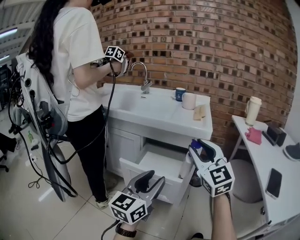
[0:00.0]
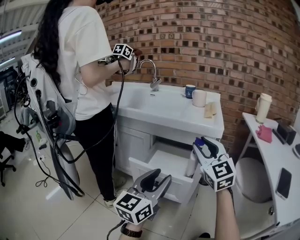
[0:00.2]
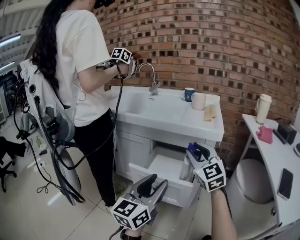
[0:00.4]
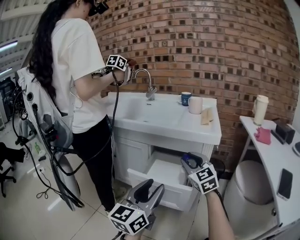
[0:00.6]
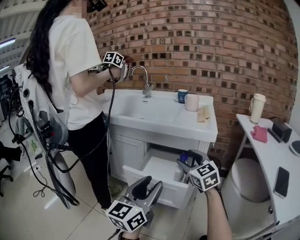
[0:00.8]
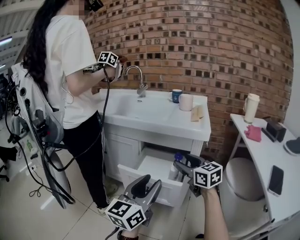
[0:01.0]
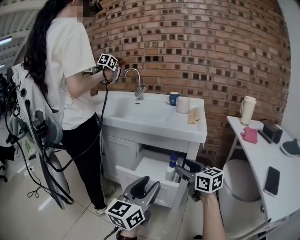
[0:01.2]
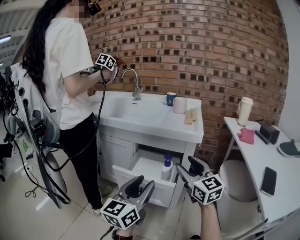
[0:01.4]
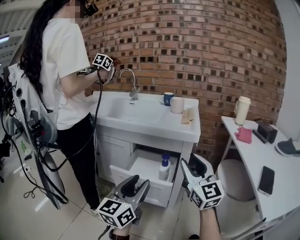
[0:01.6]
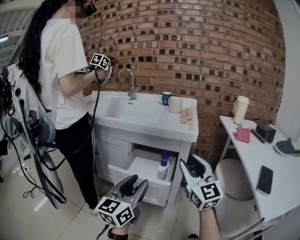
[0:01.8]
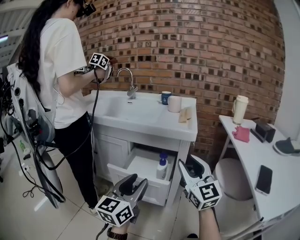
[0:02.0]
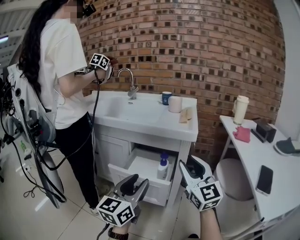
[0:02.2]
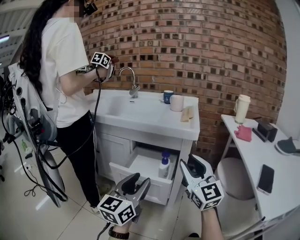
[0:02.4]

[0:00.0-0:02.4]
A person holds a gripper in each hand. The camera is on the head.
0.0 to 1.2 s: The right gripper moves downward, roughly 10 cm, changes its angle by some 40 degrees, and opens.
1.2 to 2.4 s: The right gripper shifts some 10 cm upward and backward, rotates some 40 degrees, and closes.

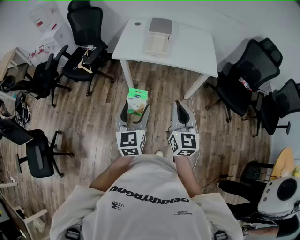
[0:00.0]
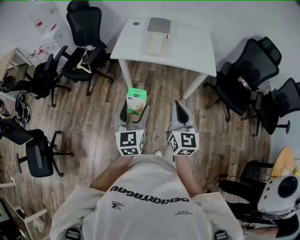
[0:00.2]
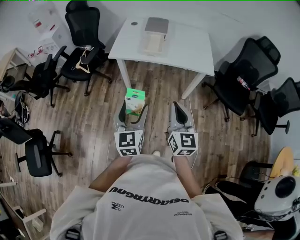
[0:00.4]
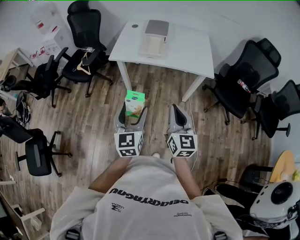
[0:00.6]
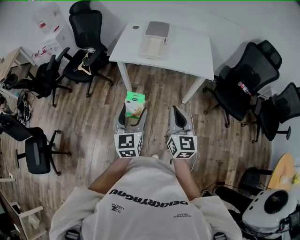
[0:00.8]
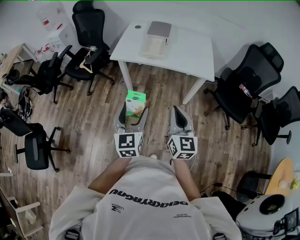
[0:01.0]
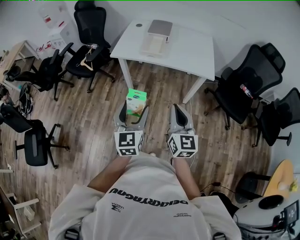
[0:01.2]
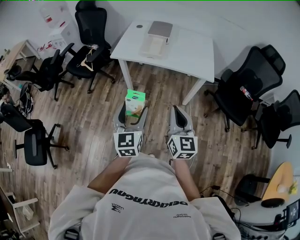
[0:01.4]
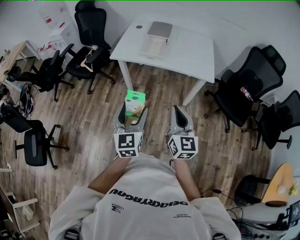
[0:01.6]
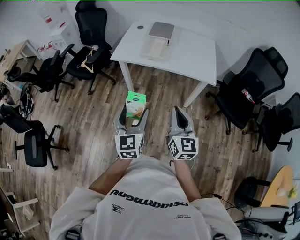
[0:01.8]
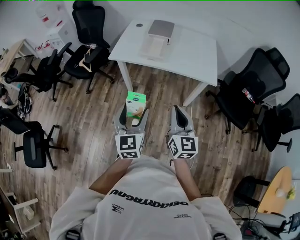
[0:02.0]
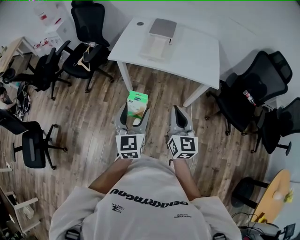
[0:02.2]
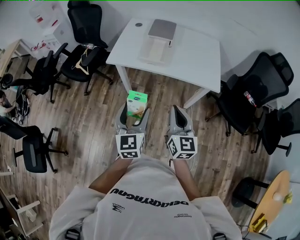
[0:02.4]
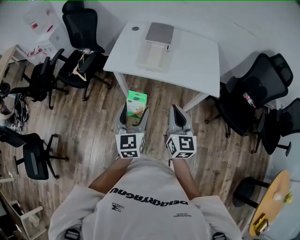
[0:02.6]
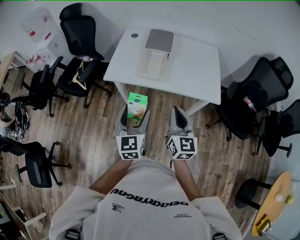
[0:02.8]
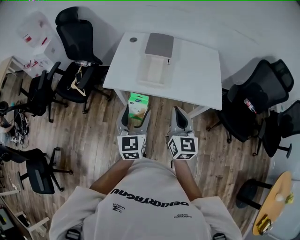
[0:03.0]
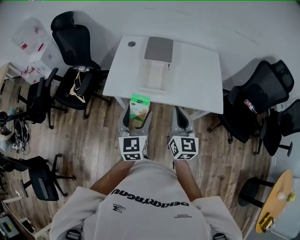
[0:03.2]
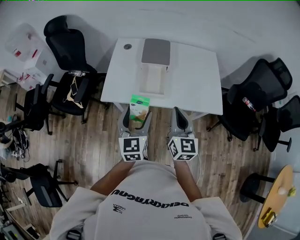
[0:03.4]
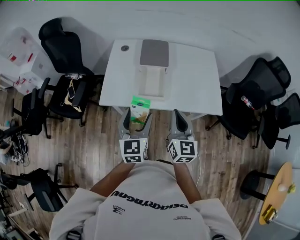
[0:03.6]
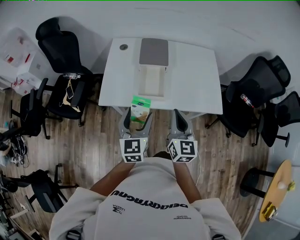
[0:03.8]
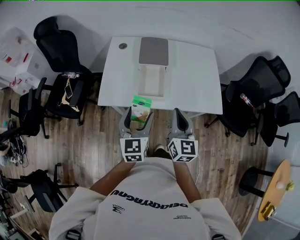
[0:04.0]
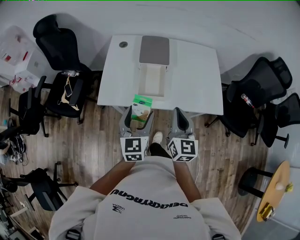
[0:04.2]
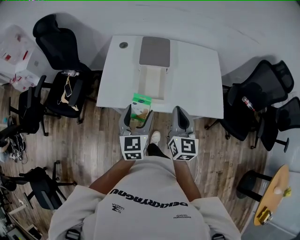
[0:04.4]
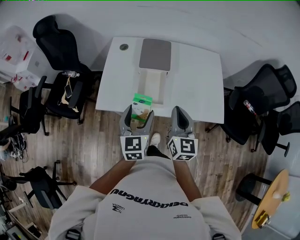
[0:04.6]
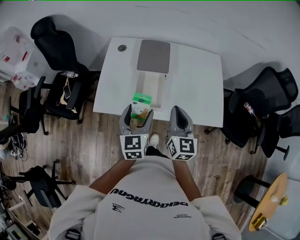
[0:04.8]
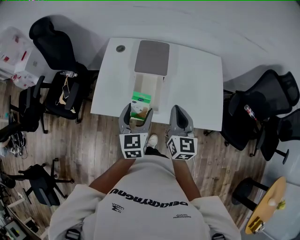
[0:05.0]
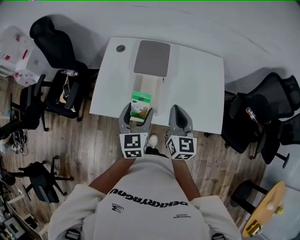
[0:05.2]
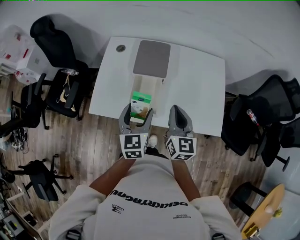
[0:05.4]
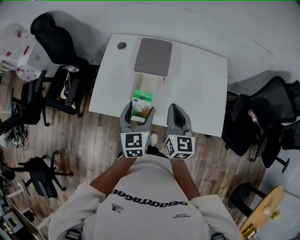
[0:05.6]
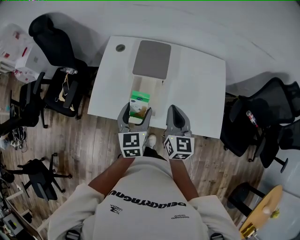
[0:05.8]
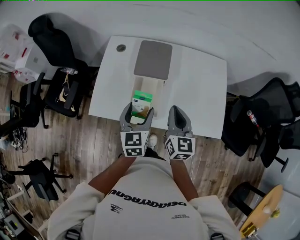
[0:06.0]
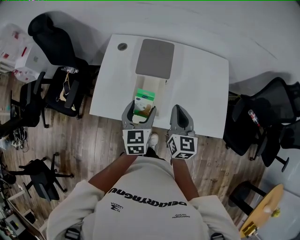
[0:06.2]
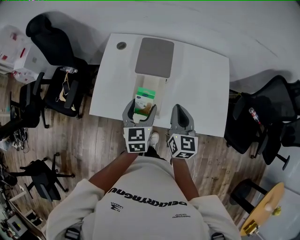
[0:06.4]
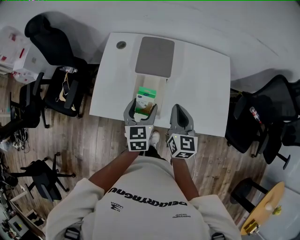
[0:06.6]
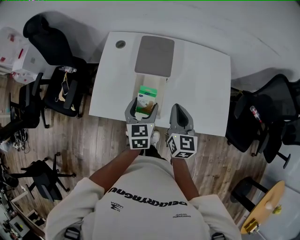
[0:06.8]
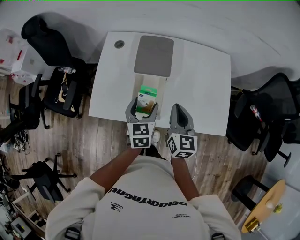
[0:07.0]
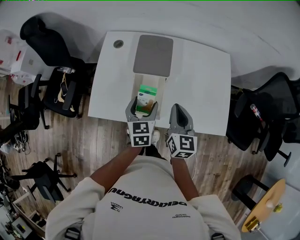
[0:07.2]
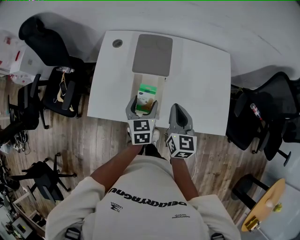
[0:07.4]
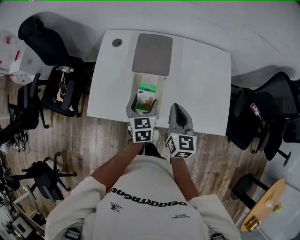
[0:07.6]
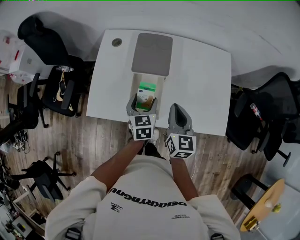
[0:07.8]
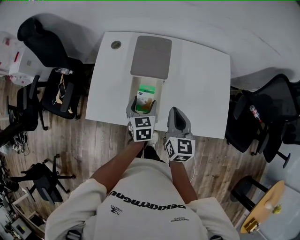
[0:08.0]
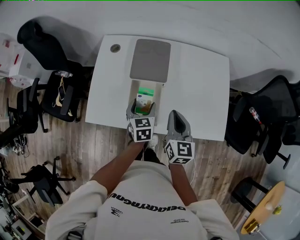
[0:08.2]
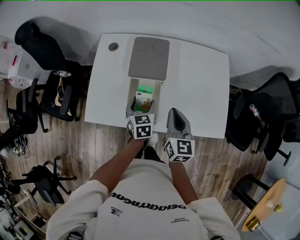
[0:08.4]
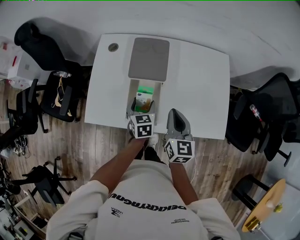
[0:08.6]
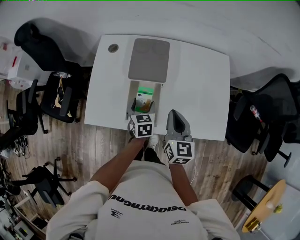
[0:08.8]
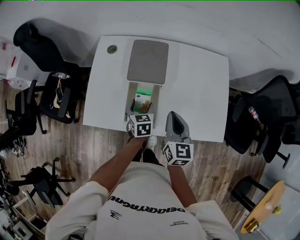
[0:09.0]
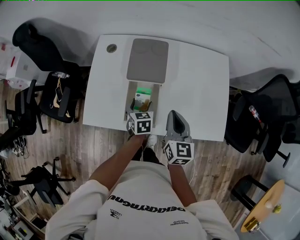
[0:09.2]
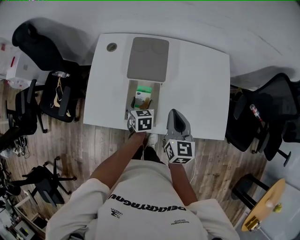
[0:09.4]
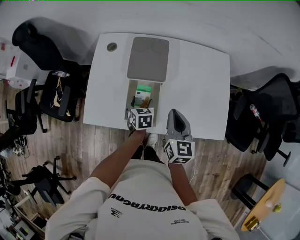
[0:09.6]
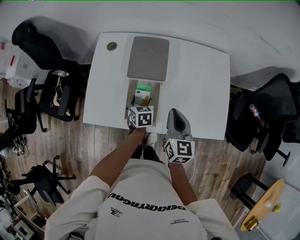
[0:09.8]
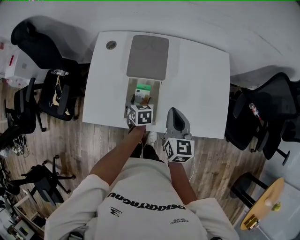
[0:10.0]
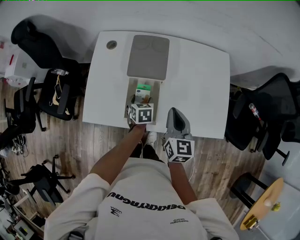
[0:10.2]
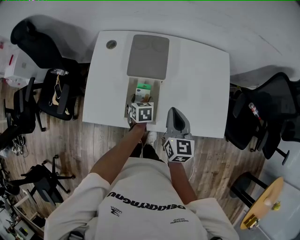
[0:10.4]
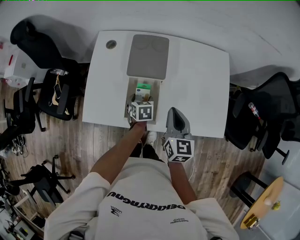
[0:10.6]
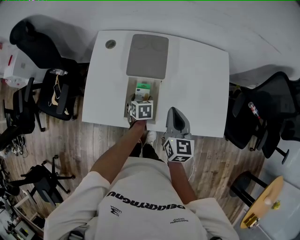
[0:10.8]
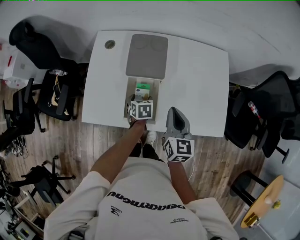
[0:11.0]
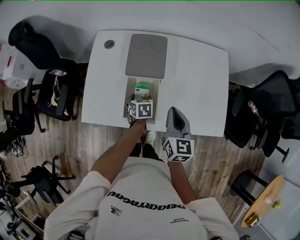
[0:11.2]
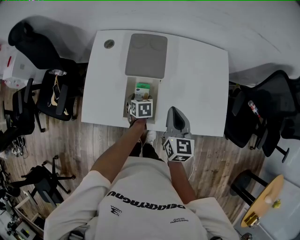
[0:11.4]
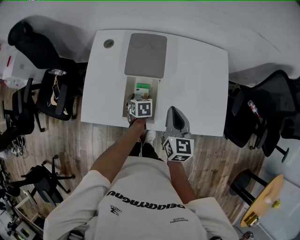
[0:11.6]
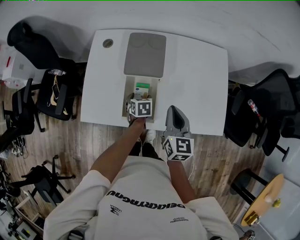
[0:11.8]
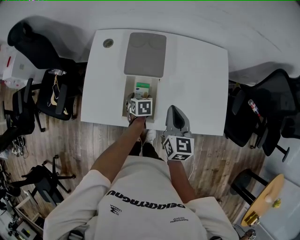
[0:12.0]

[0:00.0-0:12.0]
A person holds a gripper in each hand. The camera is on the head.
0.0 to 1.6 s: The grippers both shift to the right by approximately 10 cm.
1.6 to 3.0 s: The two grippers go roughly 30 cm forward.
3.0 to 4.4 s: The grippers both shift forward by some 15 cm.
4.4 to 6.0 s: The left gripper shifts some 15 cm forward and to the right, while the right gripper travels forward by about 15 cm.
6.0 to 7.6 s: The left gripper is displaced downward and forward by some 10 cm.
7.6 to 9.0 s: The left gripper moves downward, some 10 cm.
9.0 to 10.4 s: The left gripper shifts by roughly 5 cm.
10.4 to 12.0 s: There are only small adjustments of the grippers.

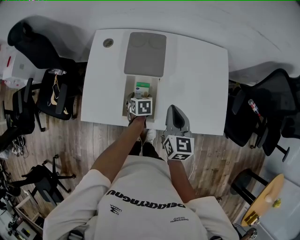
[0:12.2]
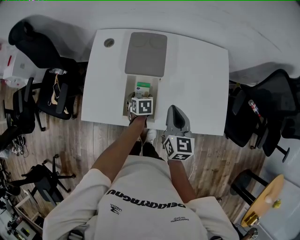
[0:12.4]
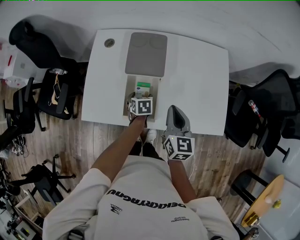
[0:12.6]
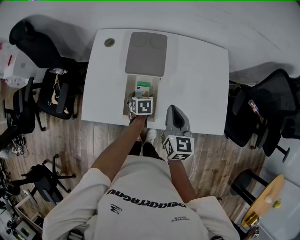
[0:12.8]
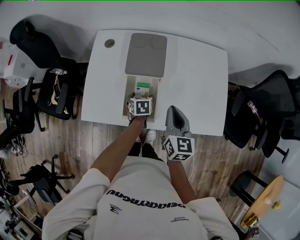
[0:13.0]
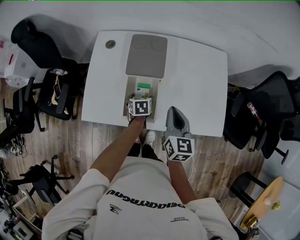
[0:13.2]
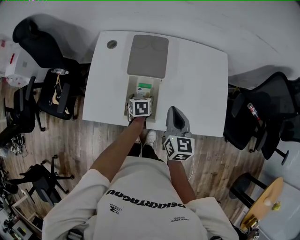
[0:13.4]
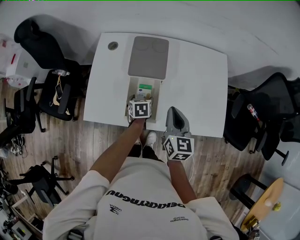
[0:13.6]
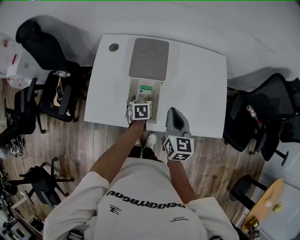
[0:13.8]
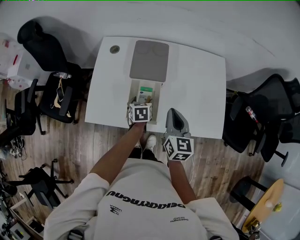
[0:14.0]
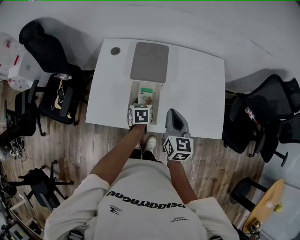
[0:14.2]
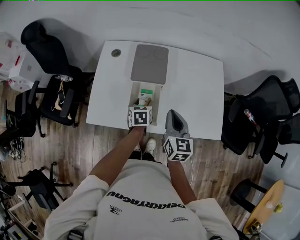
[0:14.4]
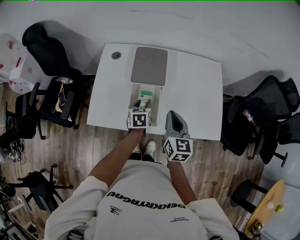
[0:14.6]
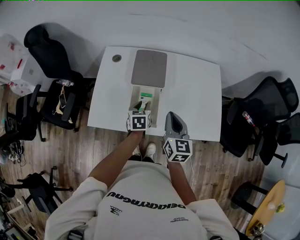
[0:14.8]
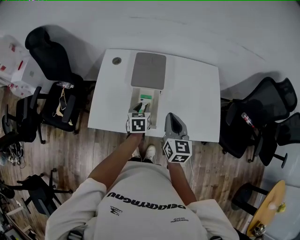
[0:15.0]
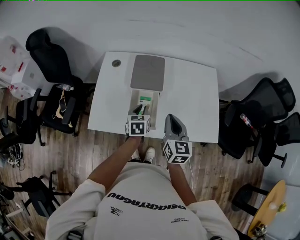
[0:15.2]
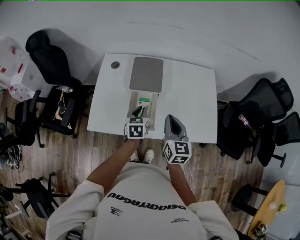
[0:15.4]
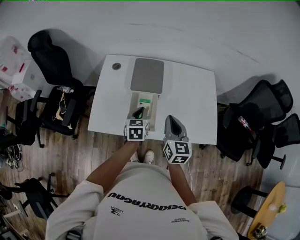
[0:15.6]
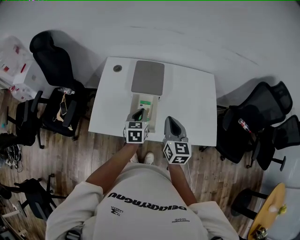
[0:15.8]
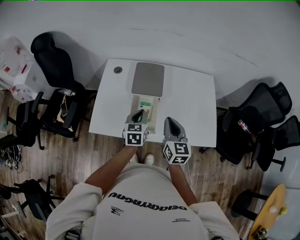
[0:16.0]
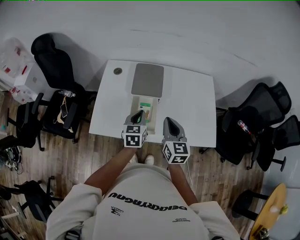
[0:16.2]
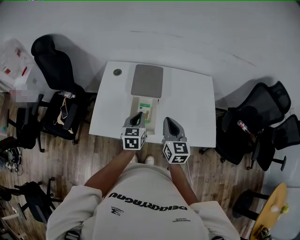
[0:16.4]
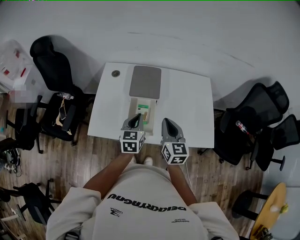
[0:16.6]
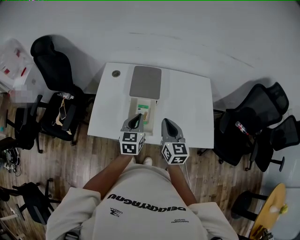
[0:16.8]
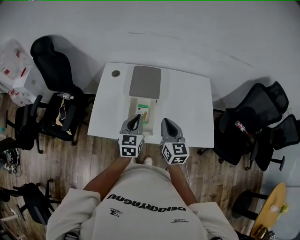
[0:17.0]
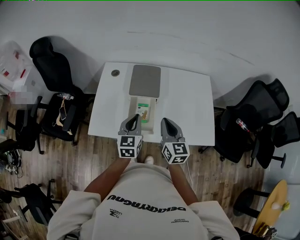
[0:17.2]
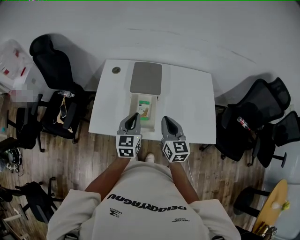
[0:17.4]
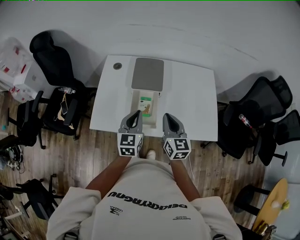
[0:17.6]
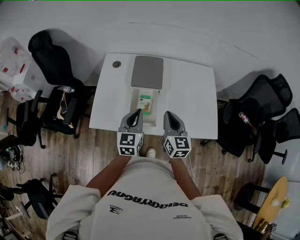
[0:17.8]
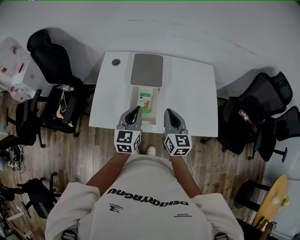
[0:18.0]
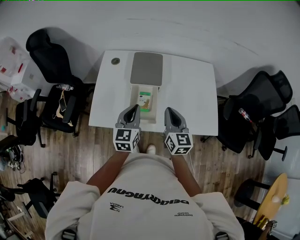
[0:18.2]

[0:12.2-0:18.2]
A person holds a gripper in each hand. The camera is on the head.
12.2 to 13.8 s: The grippers move only a little.
13.8 to 15.2 s: The left gripper goes some 10 cm upward, and closes its fingers.
15.2 to 16.6 s: The left gripper goes approximately 10 cm upward.
16.6 to 18.2 s: The grippers move only a little.

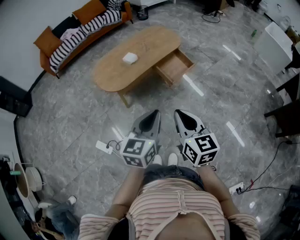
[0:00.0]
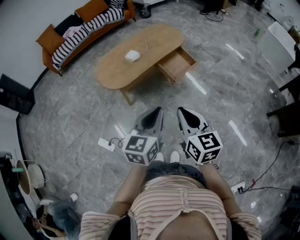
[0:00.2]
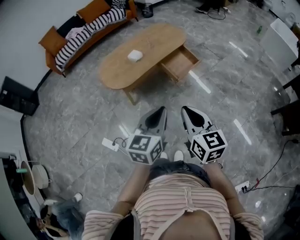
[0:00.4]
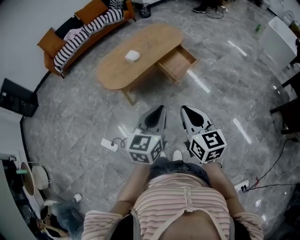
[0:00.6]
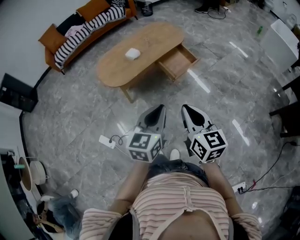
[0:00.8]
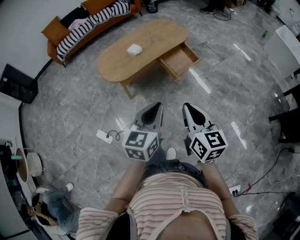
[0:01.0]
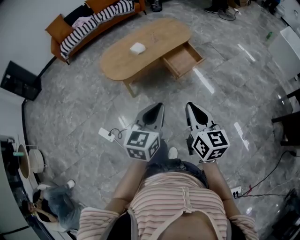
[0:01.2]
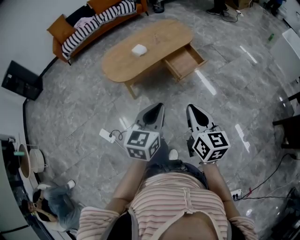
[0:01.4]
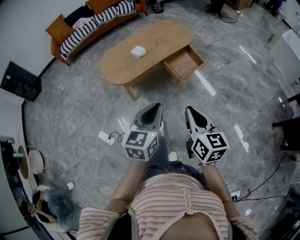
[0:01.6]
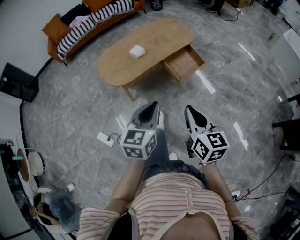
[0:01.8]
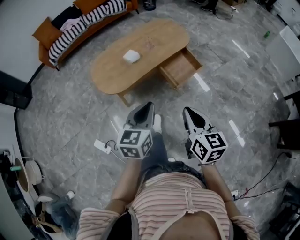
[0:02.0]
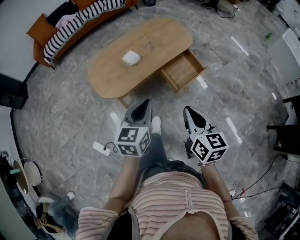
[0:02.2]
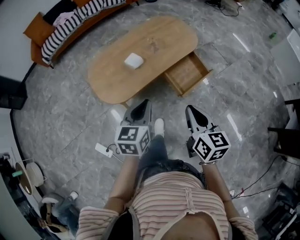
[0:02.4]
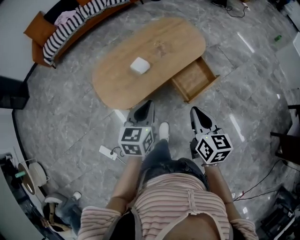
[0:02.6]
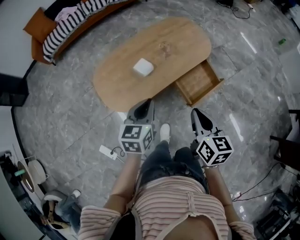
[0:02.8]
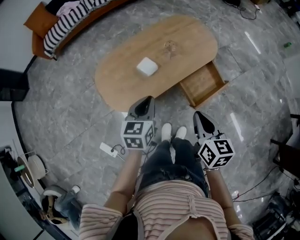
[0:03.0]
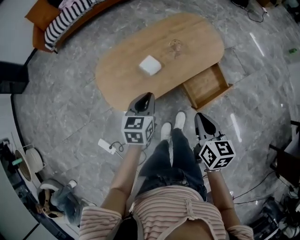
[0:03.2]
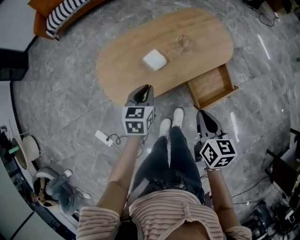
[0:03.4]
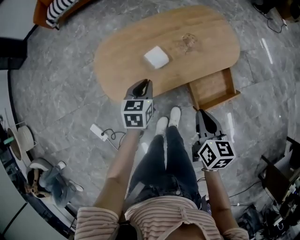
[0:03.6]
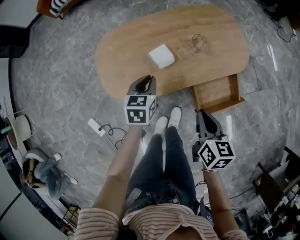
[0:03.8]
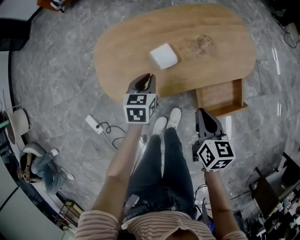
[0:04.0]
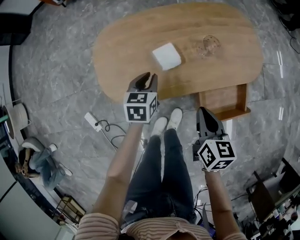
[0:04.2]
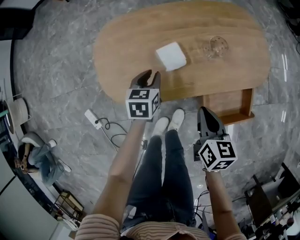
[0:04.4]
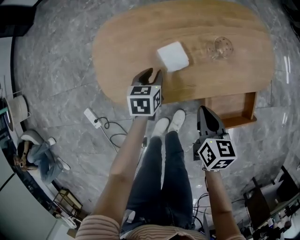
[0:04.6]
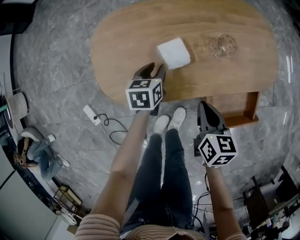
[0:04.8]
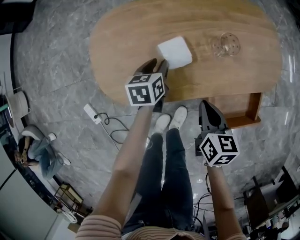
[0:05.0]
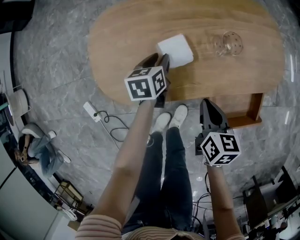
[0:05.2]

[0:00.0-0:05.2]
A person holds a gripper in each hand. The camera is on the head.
0.0 to 1.8 s: The left gripper heads forward, covering some 10 cm; the right gripper heads forward and to the right, covering some 10 cm.
1.8 to 3.4 s: The two grippers travel together, forward, roughly 40 cm. The right gripper changes its angle by roughly 20 degrees; the left gripper swivels some 20 degrees.
3.4 to 5.2 s: Both grippers travel together downward and forward, some 30 cm. The left gripper changes its angle by roughly 30 degrees, and opens up.
